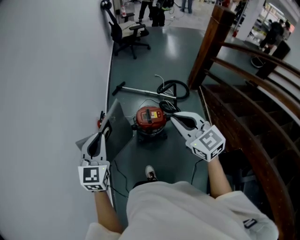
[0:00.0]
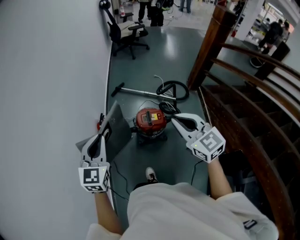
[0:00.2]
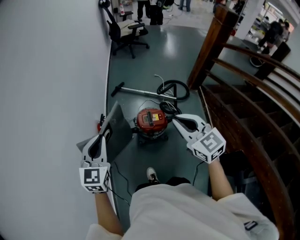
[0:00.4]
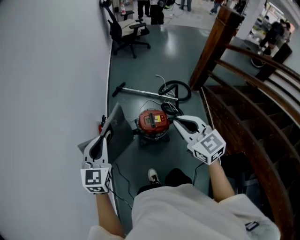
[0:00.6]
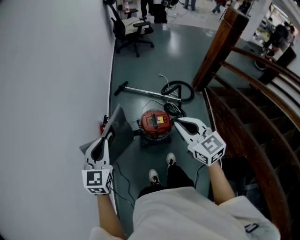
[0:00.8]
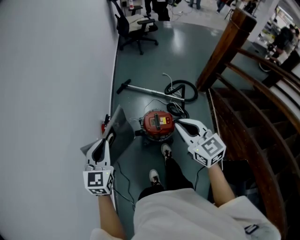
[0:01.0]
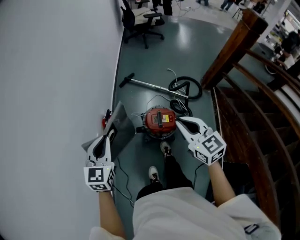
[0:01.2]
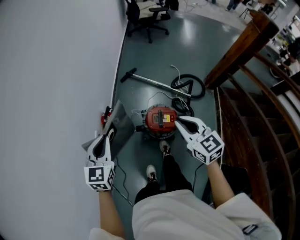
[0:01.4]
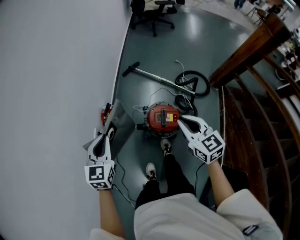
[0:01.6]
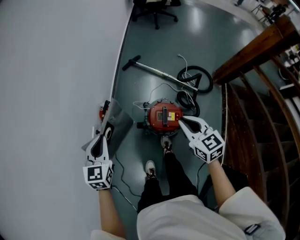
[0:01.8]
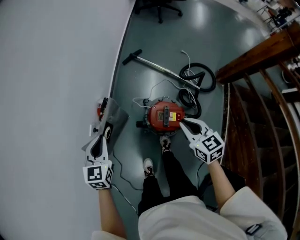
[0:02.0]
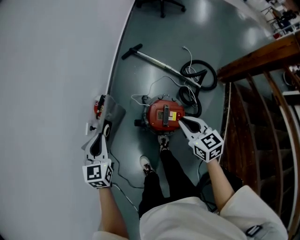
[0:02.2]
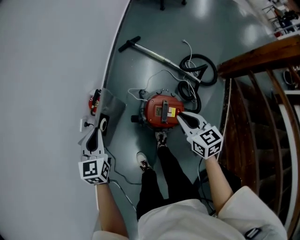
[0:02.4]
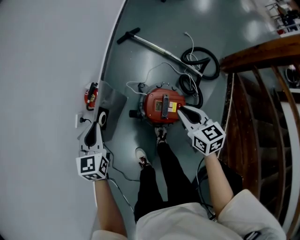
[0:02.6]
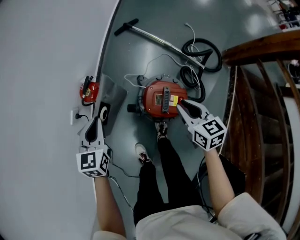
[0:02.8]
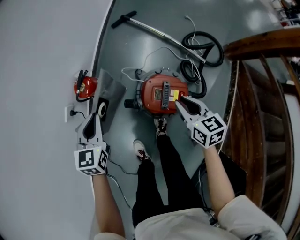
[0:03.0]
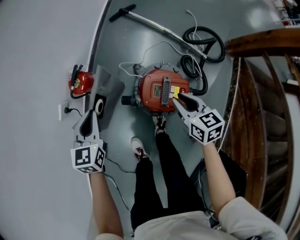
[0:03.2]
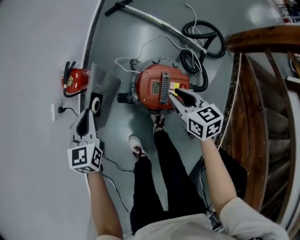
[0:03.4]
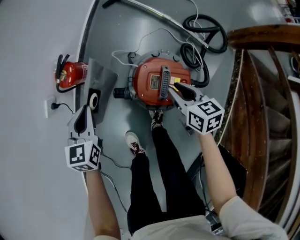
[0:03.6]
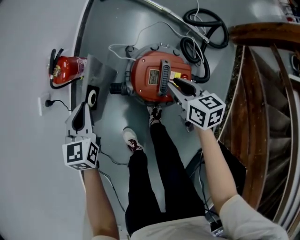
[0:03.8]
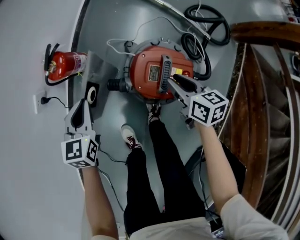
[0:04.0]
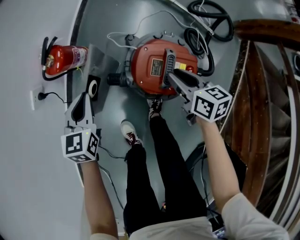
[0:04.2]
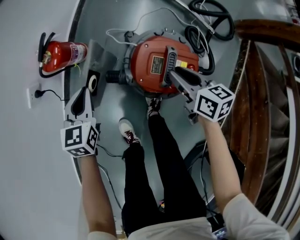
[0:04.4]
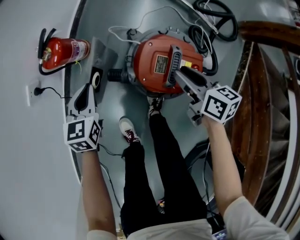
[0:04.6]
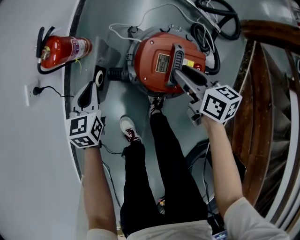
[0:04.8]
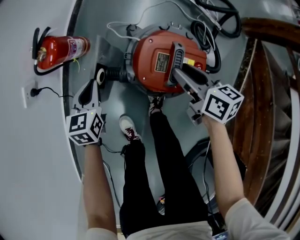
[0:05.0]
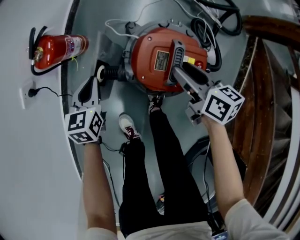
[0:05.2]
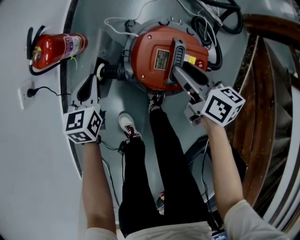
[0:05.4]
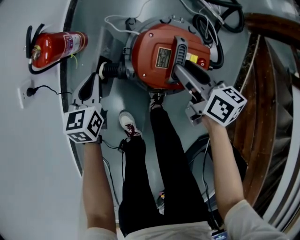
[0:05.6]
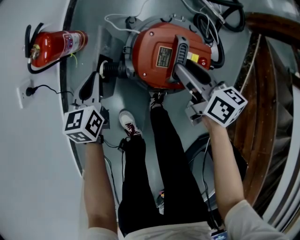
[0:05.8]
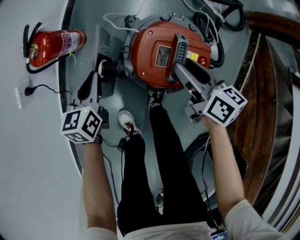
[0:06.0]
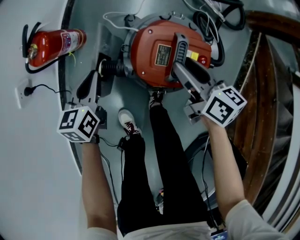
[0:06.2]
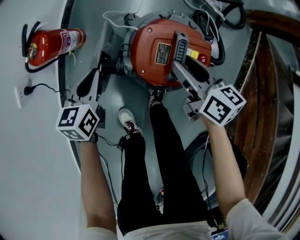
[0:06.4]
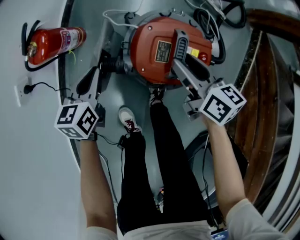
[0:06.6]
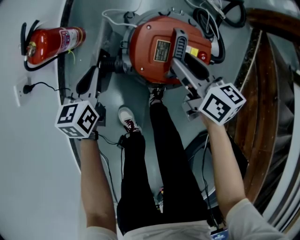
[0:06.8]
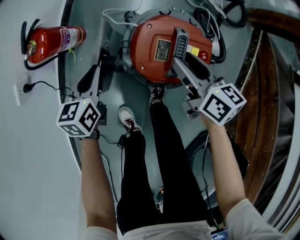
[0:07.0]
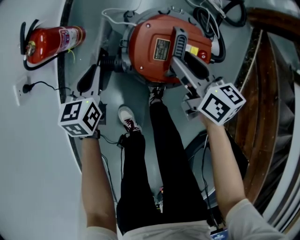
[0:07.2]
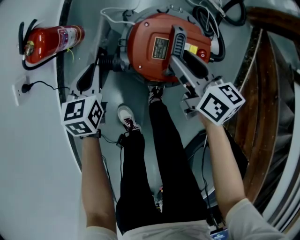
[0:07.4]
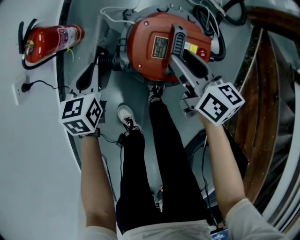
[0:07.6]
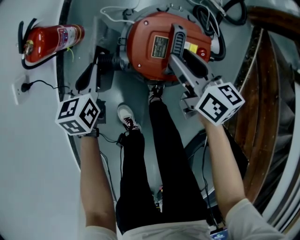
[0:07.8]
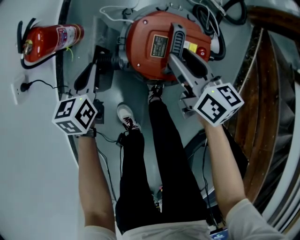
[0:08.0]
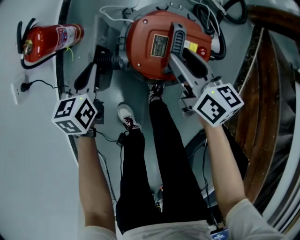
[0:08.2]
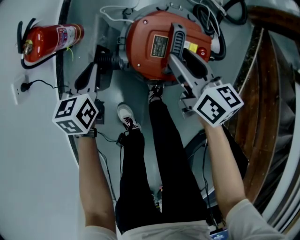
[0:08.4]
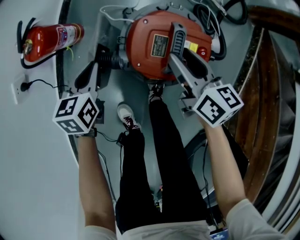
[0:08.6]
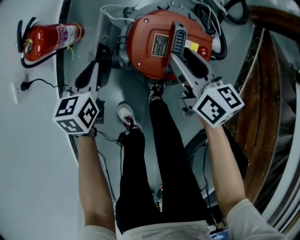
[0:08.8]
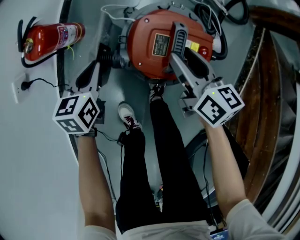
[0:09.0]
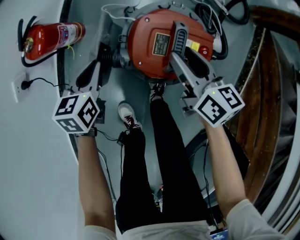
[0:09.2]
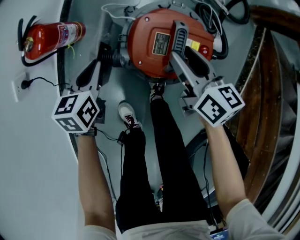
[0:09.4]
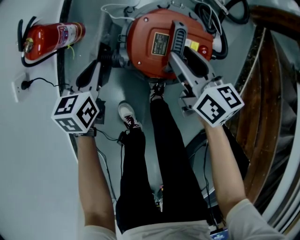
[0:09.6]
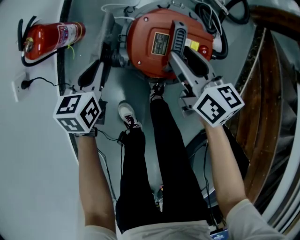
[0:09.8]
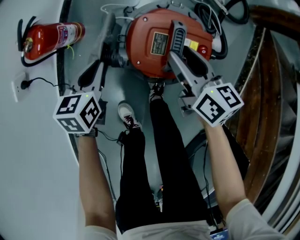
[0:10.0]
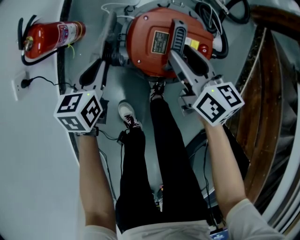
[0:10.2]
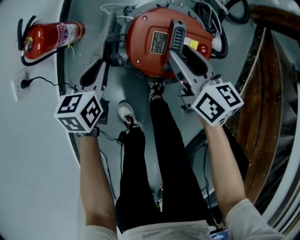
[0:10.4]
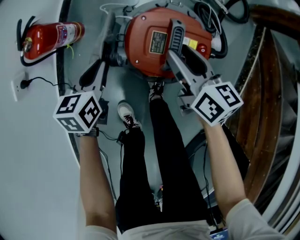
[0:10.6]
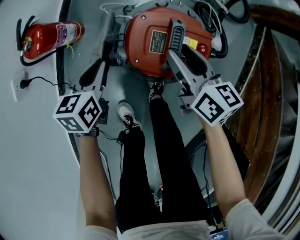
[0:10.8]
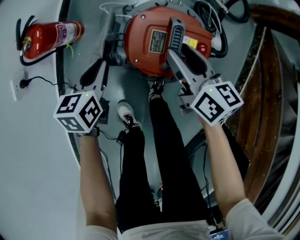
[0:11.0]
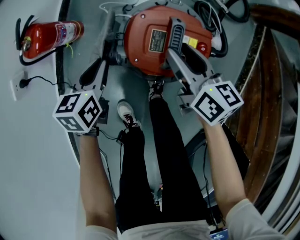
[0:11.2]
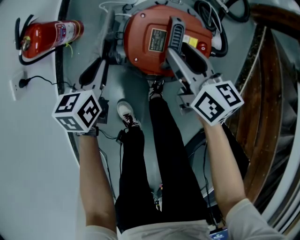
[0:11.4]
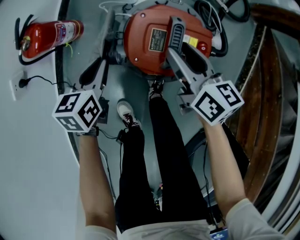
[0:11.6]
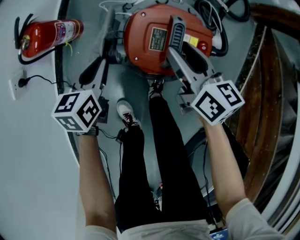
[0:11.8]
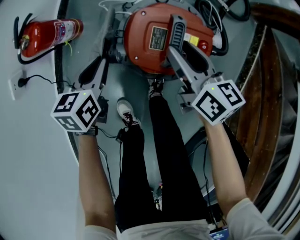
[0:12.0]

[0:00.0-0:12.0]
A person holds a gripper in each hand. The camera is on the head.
0:00.0 to 0:01.6: Both grippers move forward and downward, some 25 cm. The left gripper rotates about 20 degrees.
0:01.6 to 0:03.0: The two grippers go roughly 30 cm downward. The right gripper turns by approximately 20 degrees.
0:03.0 to 0:04.4: Both grippers move downward, approximately 20 cm.
0:04.4 to 0:06.0: The left gripper is displaced downward by some 5 cm.
0:06.0 to 0:10.4: The grippers stay close to where they were, moving slightly.
0:10.4 to 0:12.0: Both grippers stay about where they are.

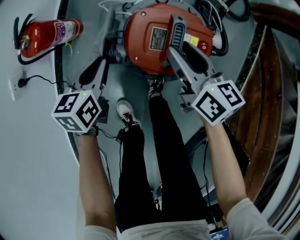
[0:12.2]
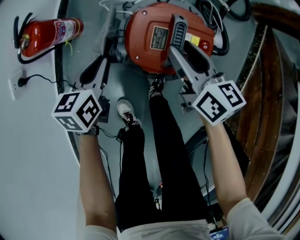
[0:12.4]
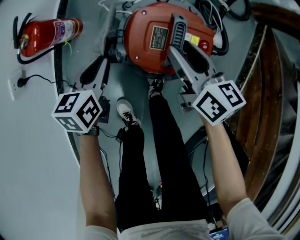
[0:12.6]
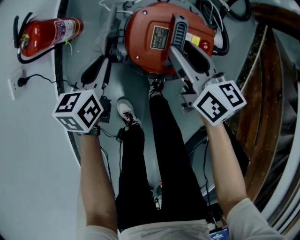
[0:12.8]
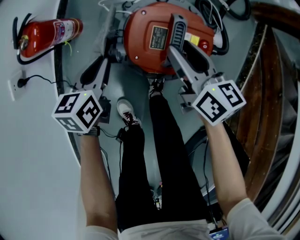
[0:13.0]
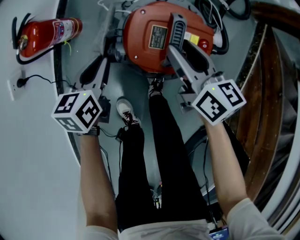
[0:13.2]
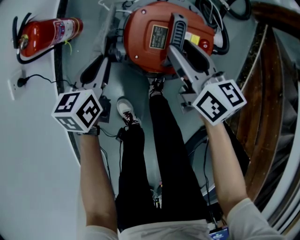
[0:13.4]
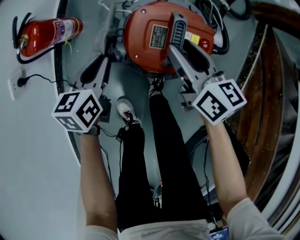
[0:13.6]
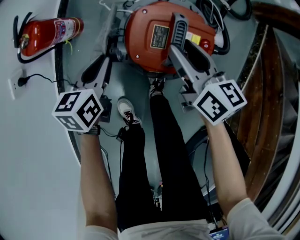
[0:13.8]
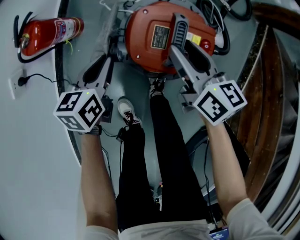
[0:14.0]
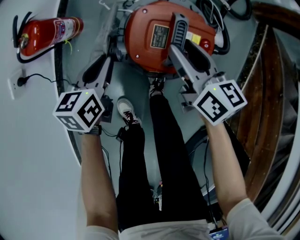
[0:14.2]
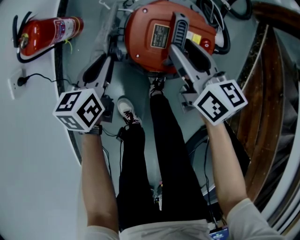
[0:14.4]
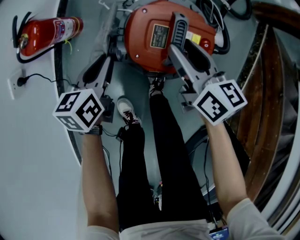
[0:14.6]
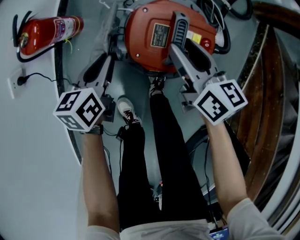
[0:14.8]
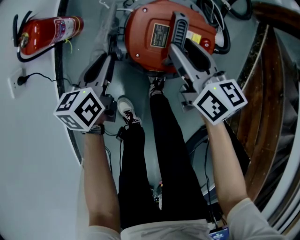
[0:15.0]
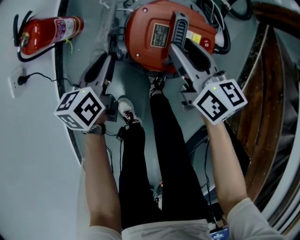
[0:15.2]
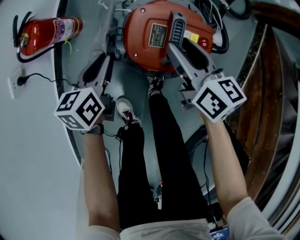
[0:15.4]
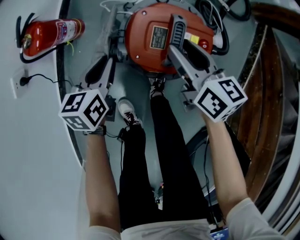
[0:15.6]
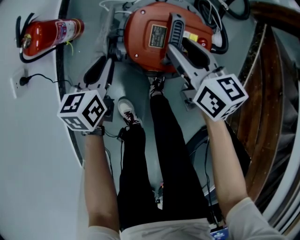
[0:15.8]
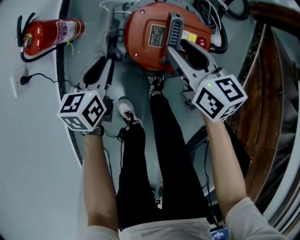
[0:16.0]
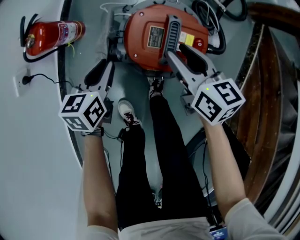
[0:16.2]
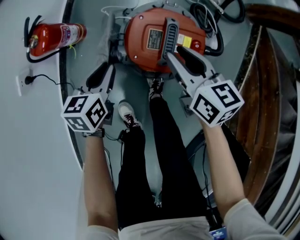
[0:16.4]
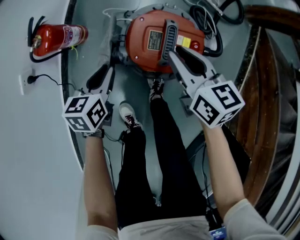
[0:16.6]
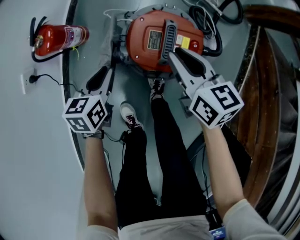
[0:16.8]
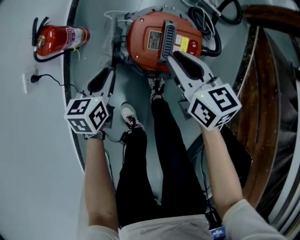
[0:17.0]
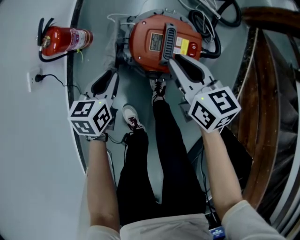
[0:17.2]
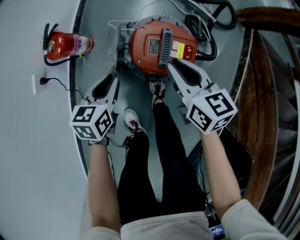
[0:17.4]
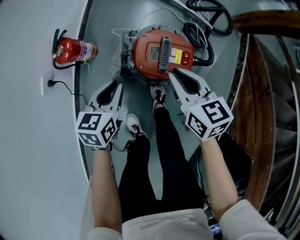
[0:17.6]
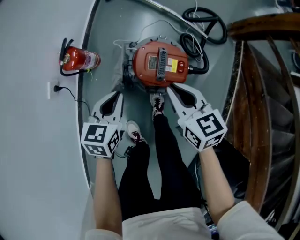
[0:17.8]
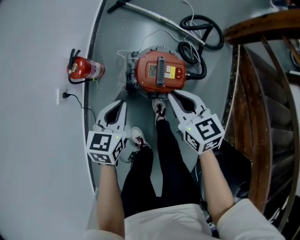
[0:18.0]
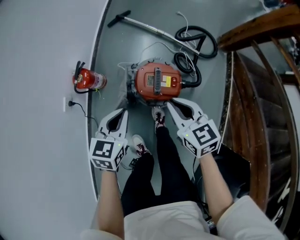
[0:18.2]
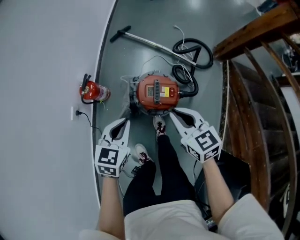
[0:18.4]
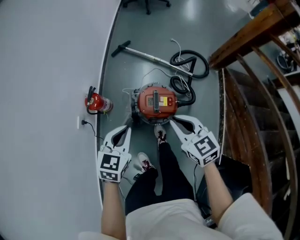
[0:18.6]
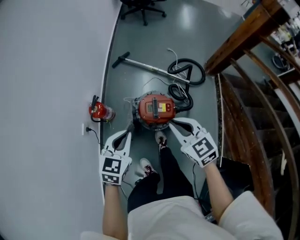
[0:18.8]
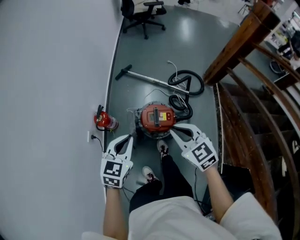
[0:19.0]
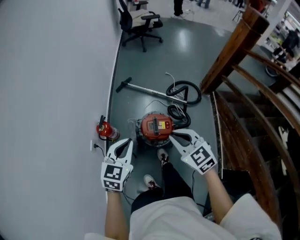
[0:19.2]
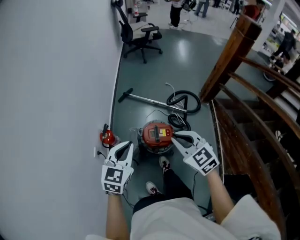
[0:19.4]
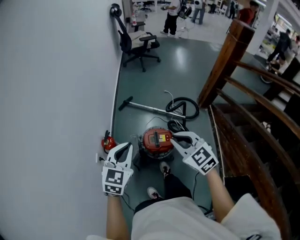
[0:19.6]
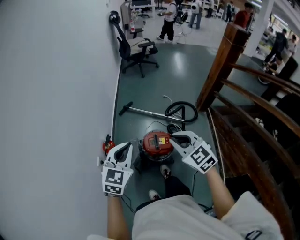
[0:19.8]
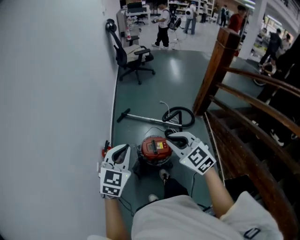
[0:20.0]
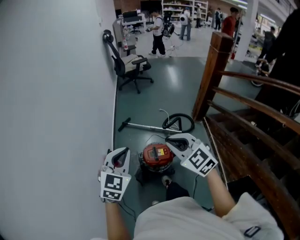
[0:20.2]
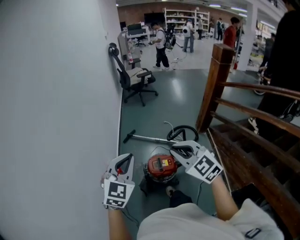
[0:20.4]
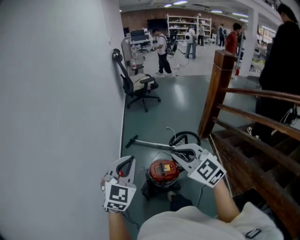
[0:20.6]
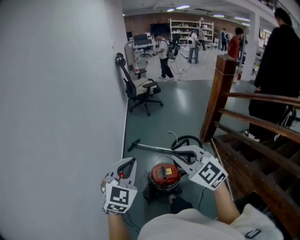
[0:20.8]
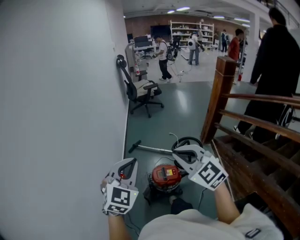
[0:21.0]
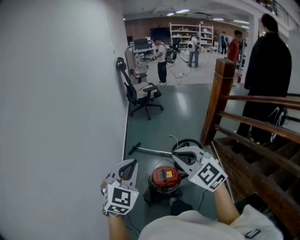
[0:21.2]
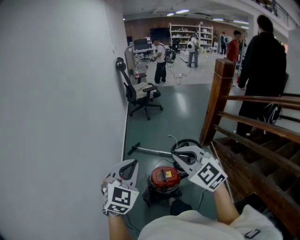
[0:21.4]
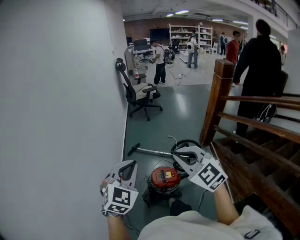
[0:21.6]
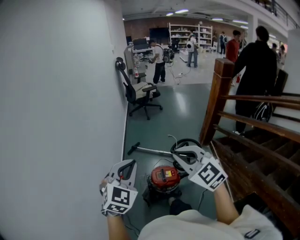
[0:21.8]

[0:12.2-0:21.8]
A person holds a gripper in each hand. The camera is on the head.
0:12.2 to 0:13.8: Both grippers stay put.
0:13.8 to 0:15.4: There are only small adjustments of the grippers.
0:15.4 to 0:17.0: The right gripper heads upward, covering some 5 cm, and closes.
0:17.0 to 0:18.6: Both grippers travel together upward, about 35 cm. The right gripper rotates approximately 20 degrees. Meanwhile the left gripper swivels approximately 30 degrees.
0:18.6 to 0:20.2: The grippers both shift upward by roughly 30 cm. The right gripper swivels about 30 degrees; the left gripper turns by approximately 30 degrees.
0:20.2 to 0:21.8: Both grippers travel together upward, some 10 cm.

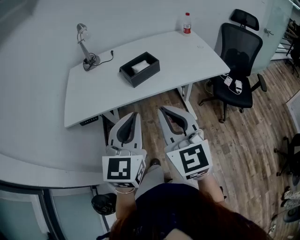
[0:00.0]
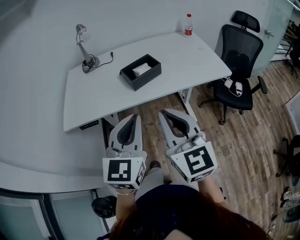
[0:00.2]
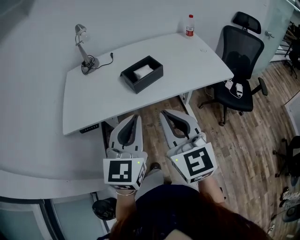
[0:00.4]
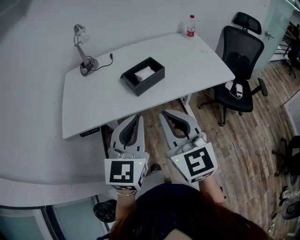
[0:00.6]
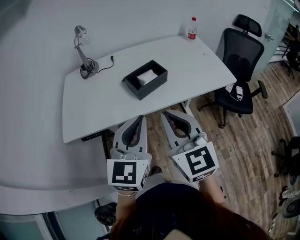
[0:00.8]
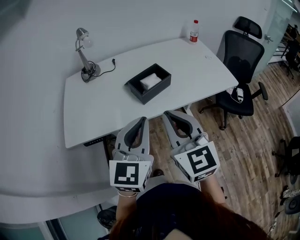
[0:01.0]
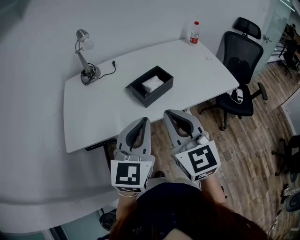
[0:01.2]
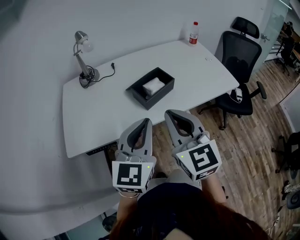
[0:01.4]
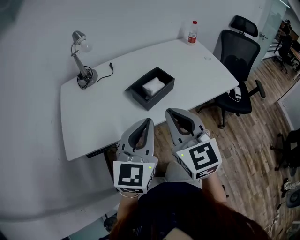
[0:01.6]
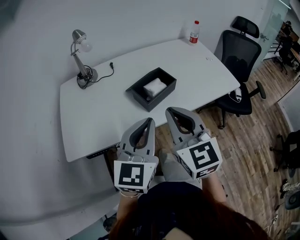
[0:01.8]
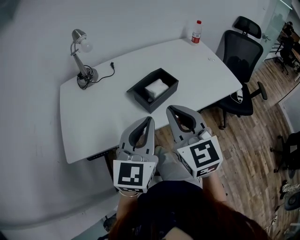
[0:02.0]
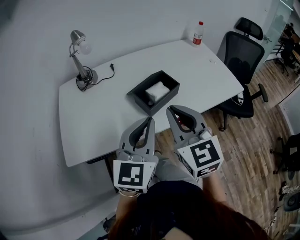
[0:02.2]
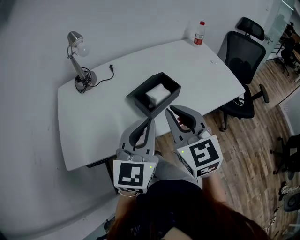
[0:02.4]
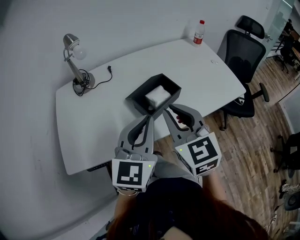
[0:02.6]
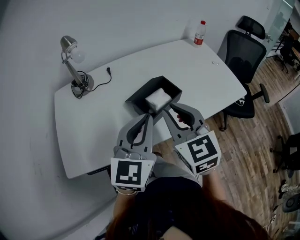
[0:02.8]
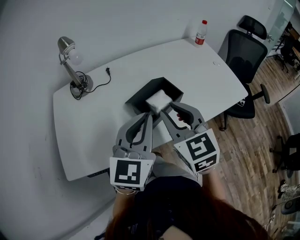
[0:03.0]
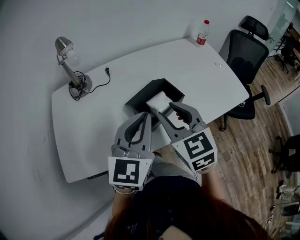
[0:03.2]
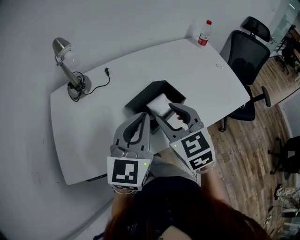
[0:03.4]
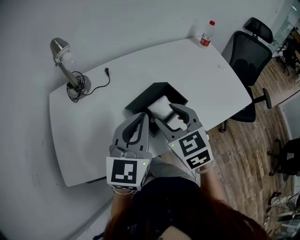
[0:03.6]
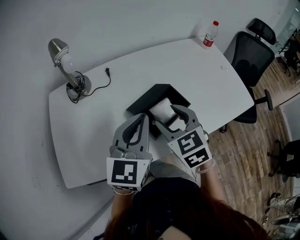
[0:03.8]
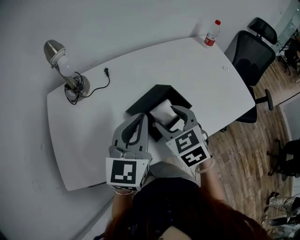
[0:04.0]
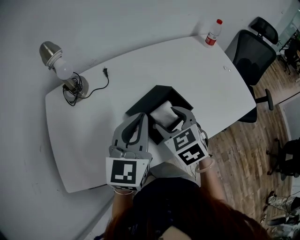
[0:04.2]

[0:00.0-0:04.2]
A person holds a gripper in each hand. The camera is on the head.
0:00.0 to 0:01.4: Both grippers travel together forward and to the left, approximately 15 cm.
0:01.4 to 0:02.8: The two grippers go approximately 15 cm forward.
0:02.8 to 0:04.2: The right gripper heads downward and forward, covering roughly 15 cm, rotates some 30 degrees, and opens. Meanwhile the left gripper goes approximately 10 cm forward.
